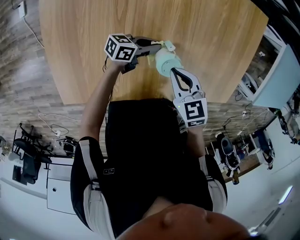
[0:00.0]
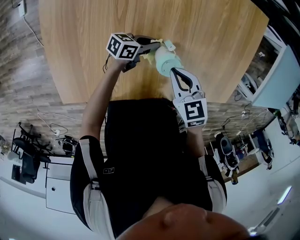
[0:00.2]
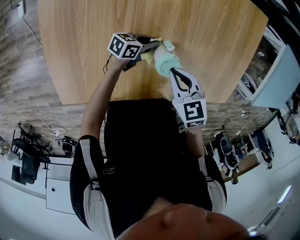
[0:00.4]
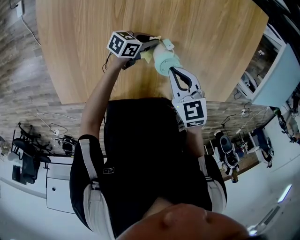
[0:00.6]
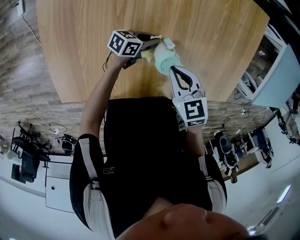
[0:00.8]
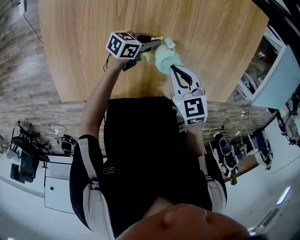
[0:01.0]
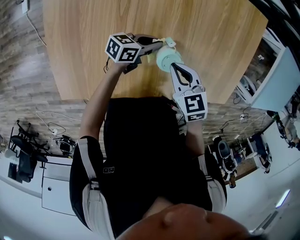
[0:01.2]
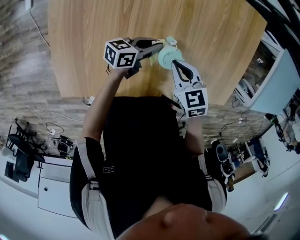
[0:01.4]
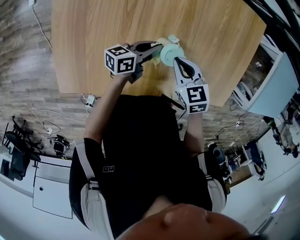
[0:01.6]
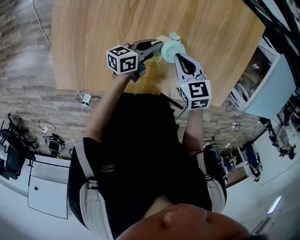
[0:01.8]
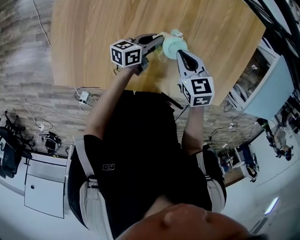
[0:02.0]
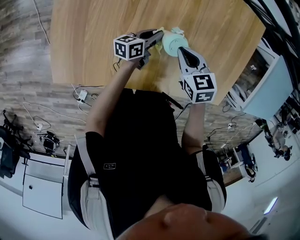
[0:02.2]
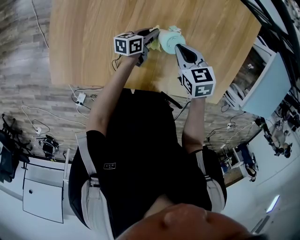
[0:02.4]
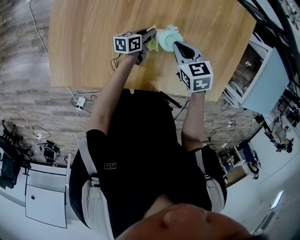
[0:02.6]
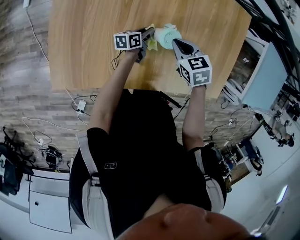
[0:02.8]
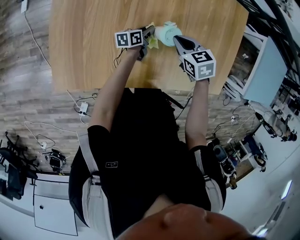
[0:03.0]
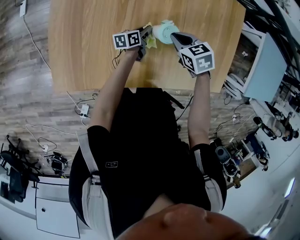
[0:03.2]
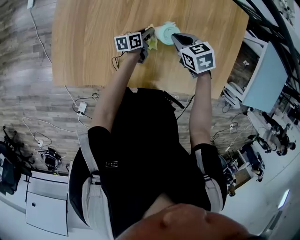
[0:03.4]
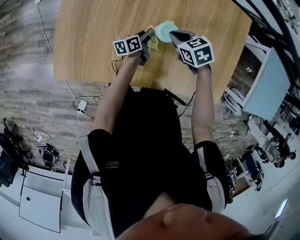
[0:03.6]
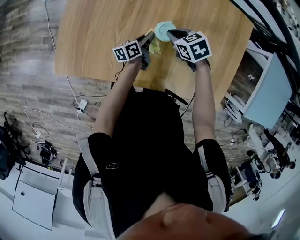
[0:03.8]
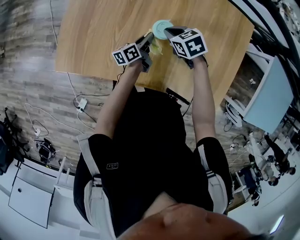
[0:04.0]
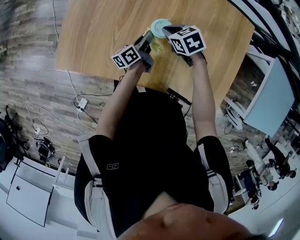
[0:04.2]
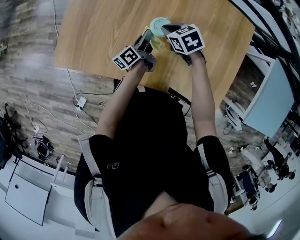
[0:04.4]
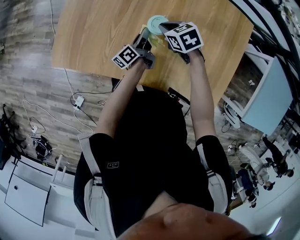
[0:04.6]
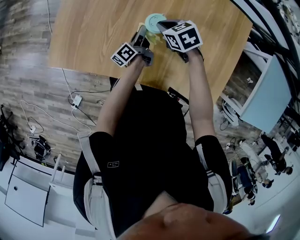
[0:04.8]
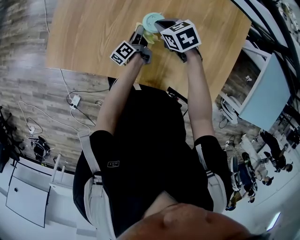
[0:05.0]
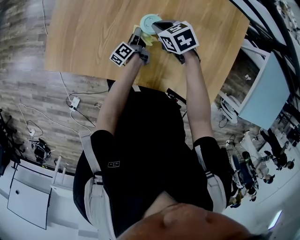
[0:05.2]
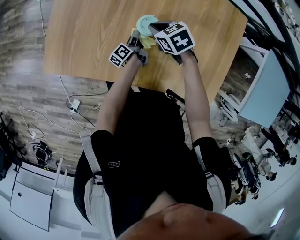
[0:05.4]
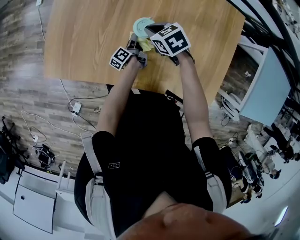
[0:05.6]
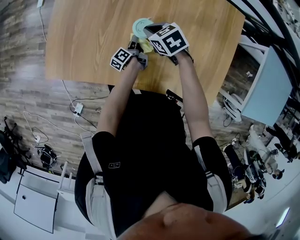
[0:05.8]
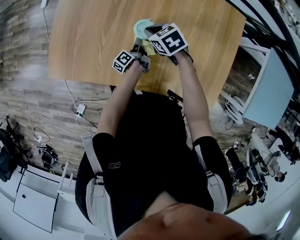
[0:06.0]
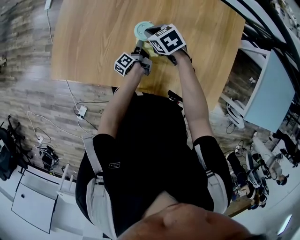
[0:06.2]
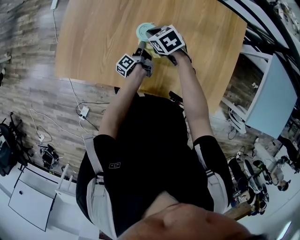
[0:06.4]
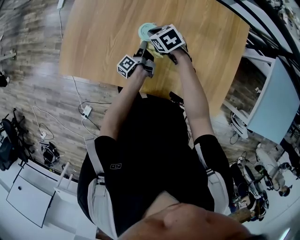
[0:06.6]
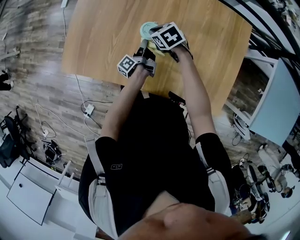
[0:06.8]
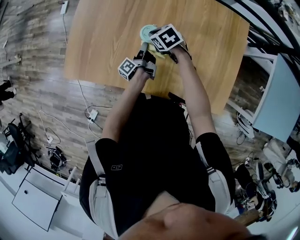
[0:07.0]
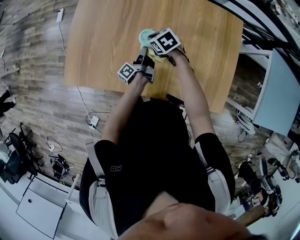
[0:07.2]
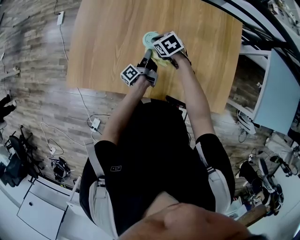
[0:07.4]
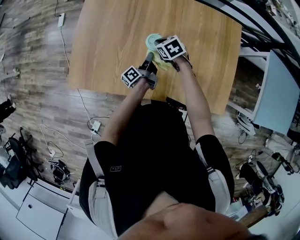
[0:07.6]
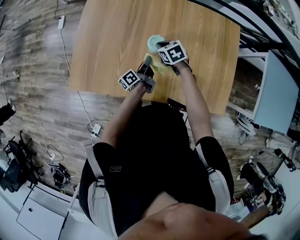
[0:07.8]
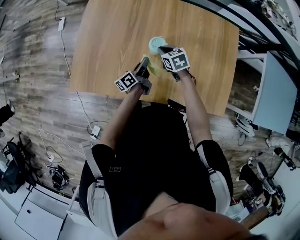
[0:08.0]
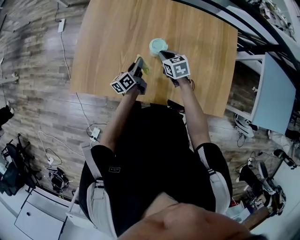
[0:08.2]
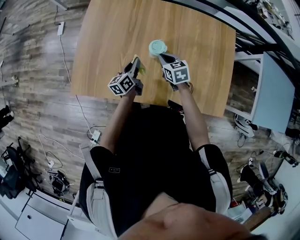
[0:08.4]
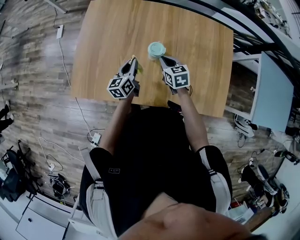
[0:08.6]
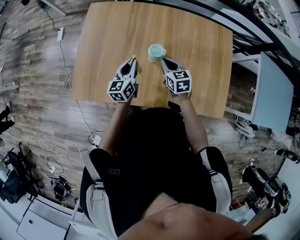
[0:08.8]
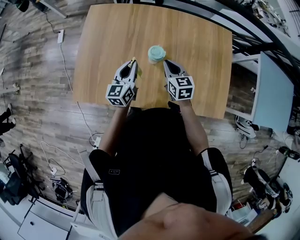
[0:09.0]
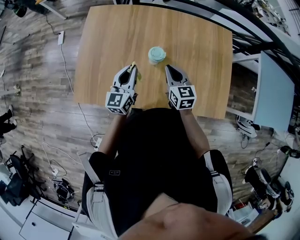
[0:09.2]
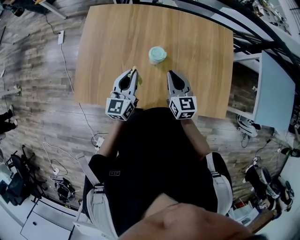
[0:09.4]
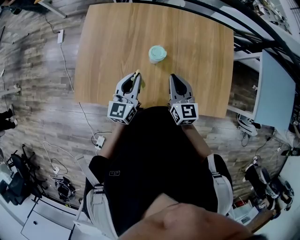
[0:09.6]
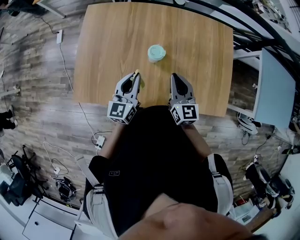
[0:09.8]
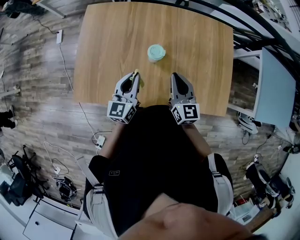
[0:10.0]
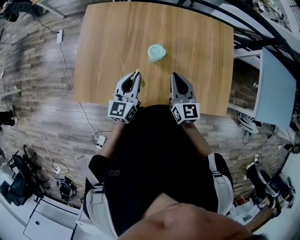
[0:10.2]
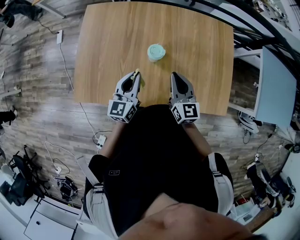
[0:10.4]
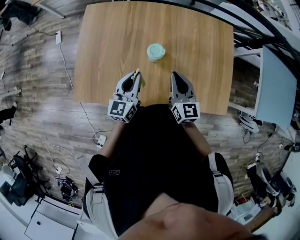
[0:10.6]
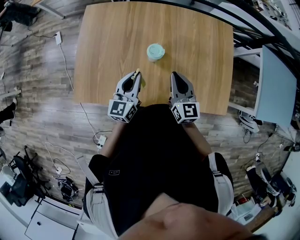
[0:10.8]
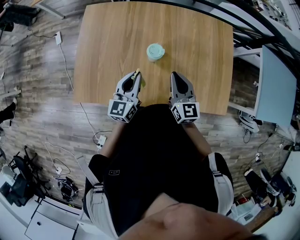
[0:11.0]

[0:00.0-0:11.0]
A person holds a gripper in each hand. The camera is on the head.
0.0 to 1.6 s: The left gripper heads upward, covering roughly 5 cm, and turns by roughly 20 degrees.
1.6 to 3.2 s: The left gripper heads downward, covering some 10 cm.
3.2 to 4.8 s: The left gripper goes roughly 10 cm upward, and swivels roughly 50 degrees.
4.8 to 6.2 s: The left gripper travels downward by roughly 5 cm.
6.2 to 7.8 s: The left gripper heads upward, covering some 10 cm, and rotates roughly 20 degrees.
7.8 to 9.4 s: The left gripper heads upward, covering approximately 20 cm, and twists about 70 degrees clockwise, seen from behind. Meanwhile the right gripper moves upward and backward, approximately 20 cm, and tips its fingers upward by approximately 40 degrees.
9.4 to 11.0 s: There are only small adjustments of the grippers.

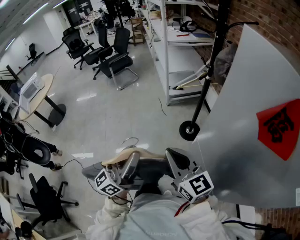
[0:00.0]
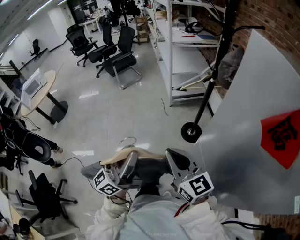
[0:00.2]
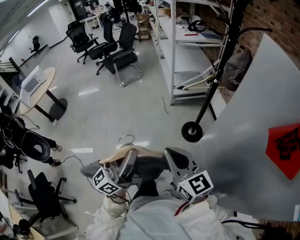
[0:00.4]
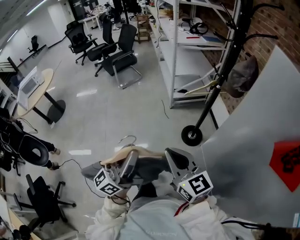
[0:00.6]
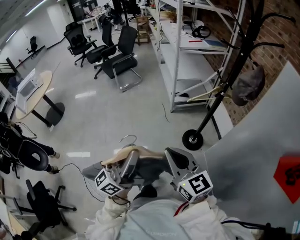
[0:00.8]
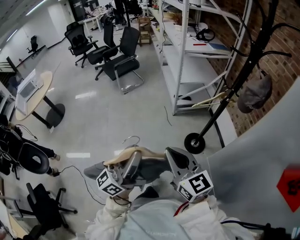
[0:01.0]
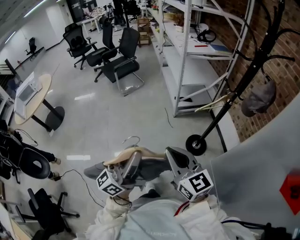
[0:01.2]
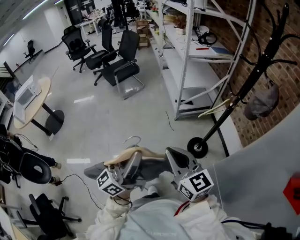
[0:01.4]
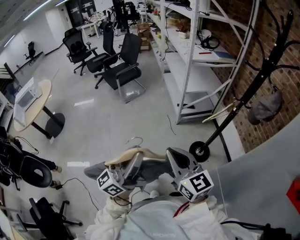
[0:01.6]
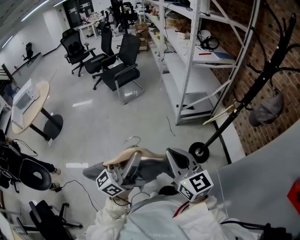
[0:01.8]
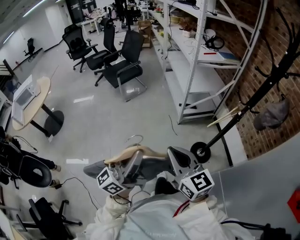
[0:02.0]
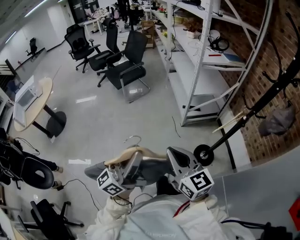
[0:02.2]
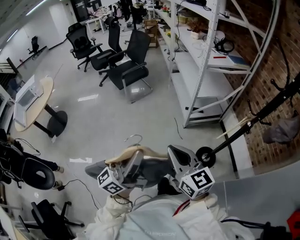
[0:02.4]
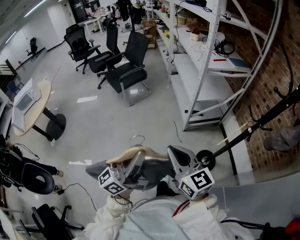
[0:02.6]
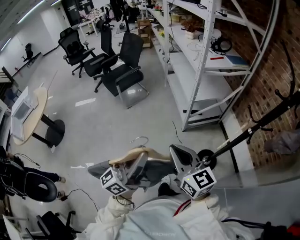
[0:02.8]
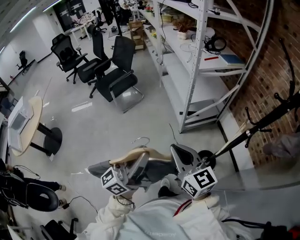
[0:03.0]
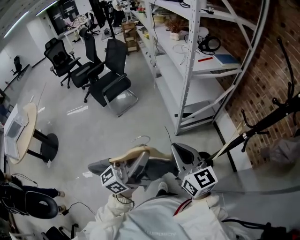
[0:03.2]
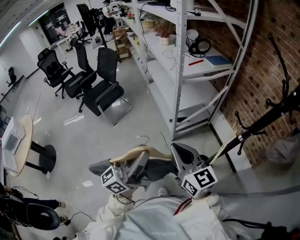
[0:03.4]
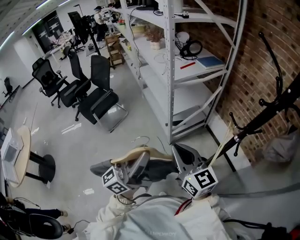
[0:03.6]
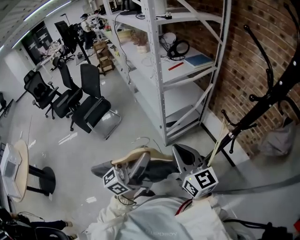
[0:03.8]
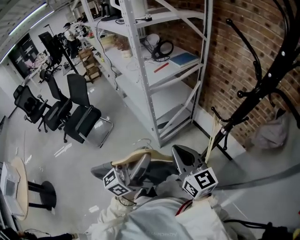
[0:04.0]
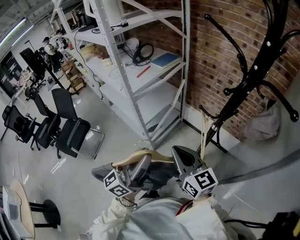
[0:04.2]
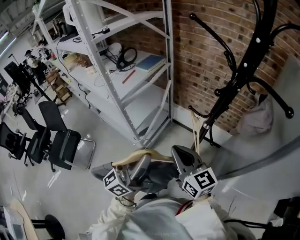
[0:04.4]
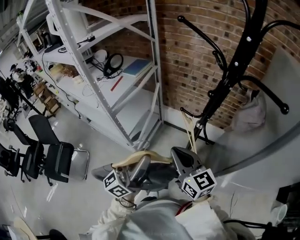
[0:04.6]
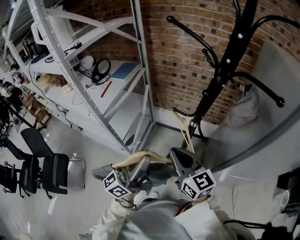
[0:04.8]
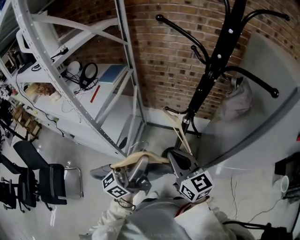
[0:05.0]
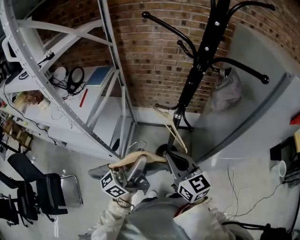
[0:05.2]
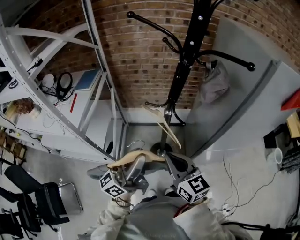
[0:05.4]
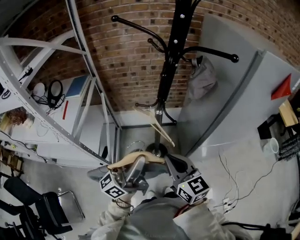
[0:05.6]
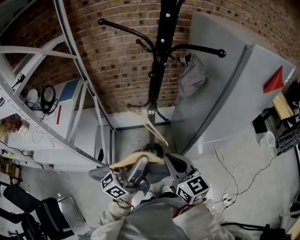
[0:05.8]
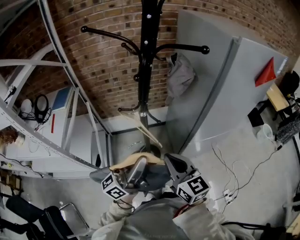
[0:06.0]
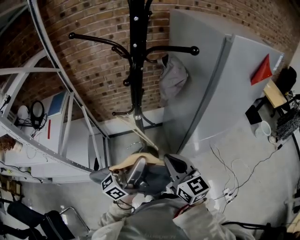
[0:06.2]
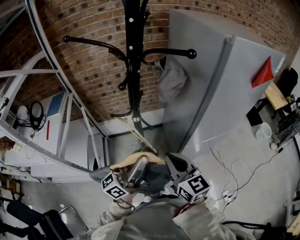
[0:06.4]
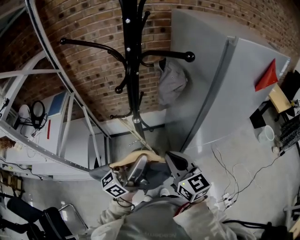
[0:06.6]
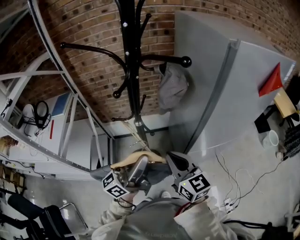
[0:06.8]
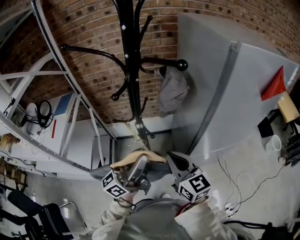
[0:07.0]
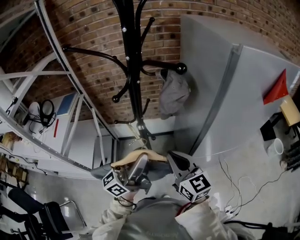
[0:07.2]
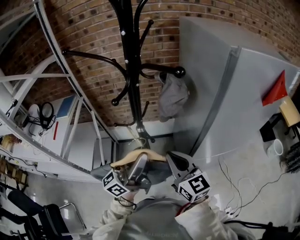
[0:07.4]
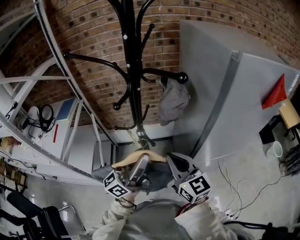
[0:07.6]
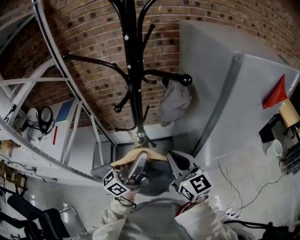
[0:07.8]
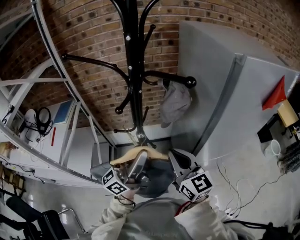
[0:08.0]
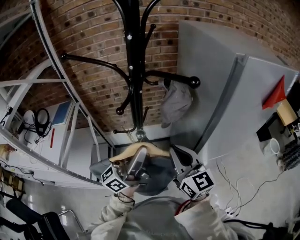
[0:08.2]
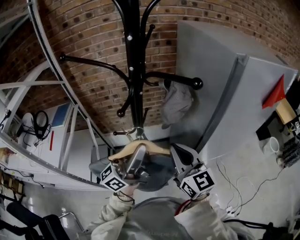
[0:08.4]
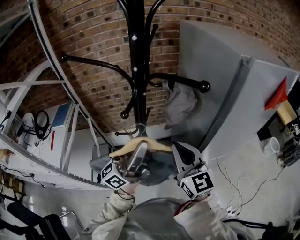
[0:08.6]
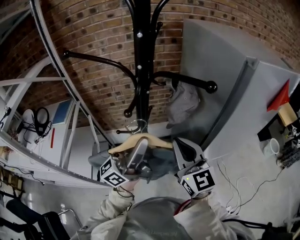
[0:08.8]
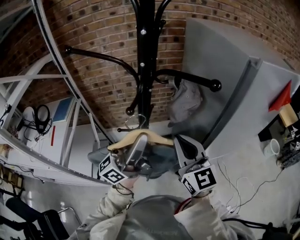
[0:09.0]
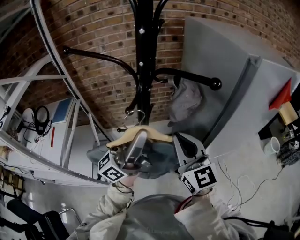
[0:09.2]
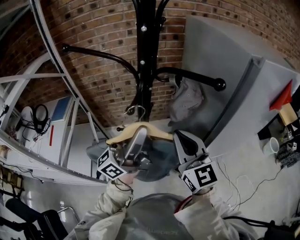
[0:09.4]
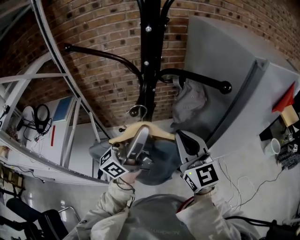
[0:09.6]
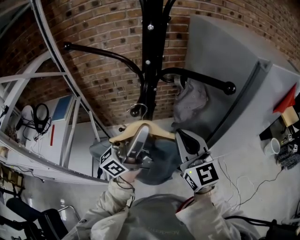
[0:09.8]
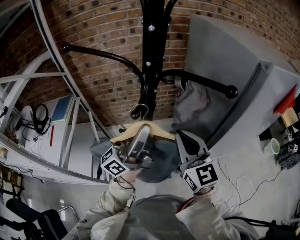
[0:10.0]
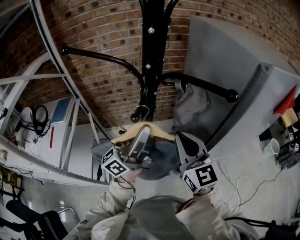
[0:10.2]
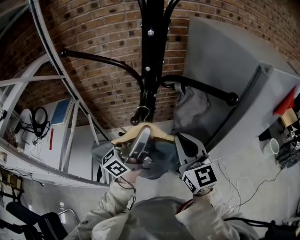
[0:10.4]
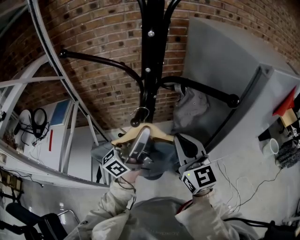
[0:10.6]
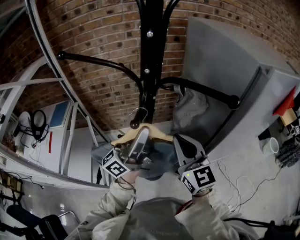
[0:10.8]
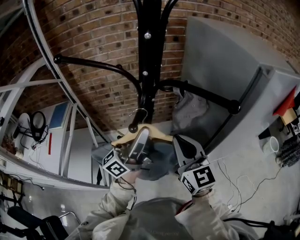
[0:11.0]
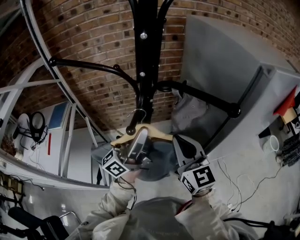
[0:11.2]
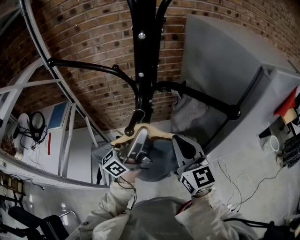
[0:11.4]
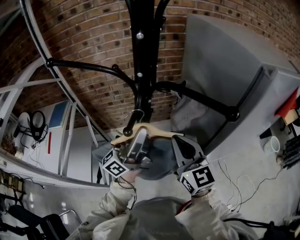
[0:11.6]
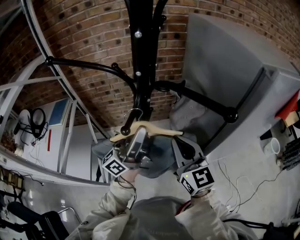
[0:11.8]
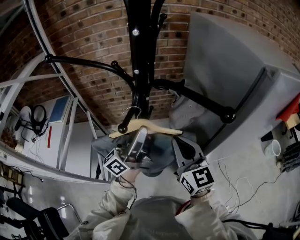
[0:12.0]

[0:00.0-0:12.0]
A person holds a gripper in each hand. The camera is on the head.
0.0 to 1.6 s: The grippers both shift forward and to the left by roughly 30 cm.
1.6 to 3.0 s: Both grippers travel together forward, about 25 cm.
3.0 to 4.4 s: The left gripper moves some 30 cm, and changes its angle by about 40 degrees. The right gripper ends up approximately 25 cm from where it was, and swivels some 40 degrees.
4.4 to 6.0 s: The left gripper changes place by roughly 10 cm, and turns by some 50 degrees, while the right gripper ends up approximately 10 cm from where it was, and changes its angle by about 50 degrees.
6.0 to 7.6 s: Both grippers travel together forward and to the right, about 10 cm.
7.6 to 9.0 s: The left gripper heads upward, forward and to the left, covering about 10 cm; the right gripper goes about 10 cm upward and forward.
9.0 to 10.4 s: The left gripper shifts about 5 cm forward.
10.4 to 12.0 s: The left gripper ends up about 5 cm from where it was.

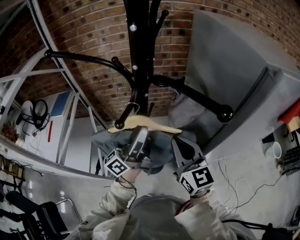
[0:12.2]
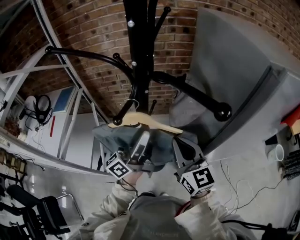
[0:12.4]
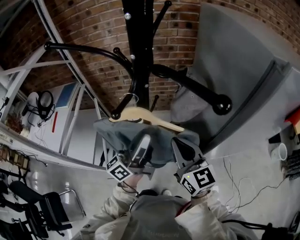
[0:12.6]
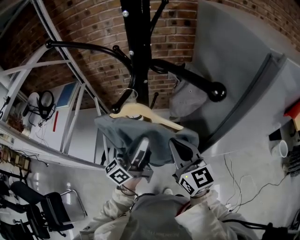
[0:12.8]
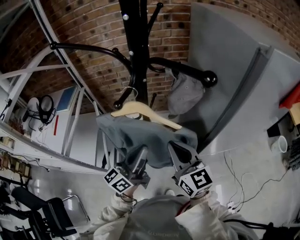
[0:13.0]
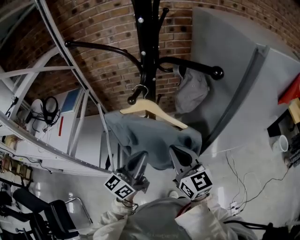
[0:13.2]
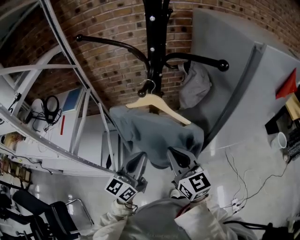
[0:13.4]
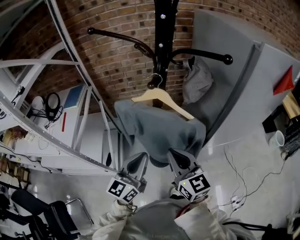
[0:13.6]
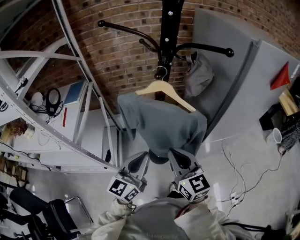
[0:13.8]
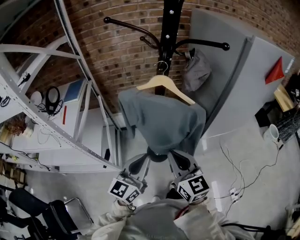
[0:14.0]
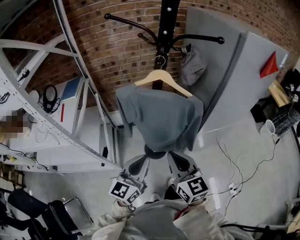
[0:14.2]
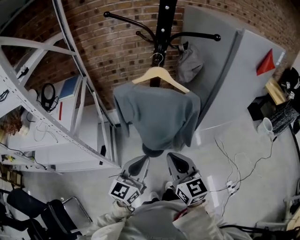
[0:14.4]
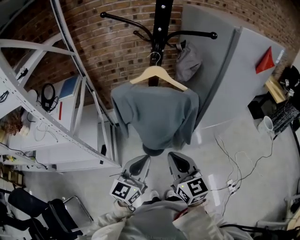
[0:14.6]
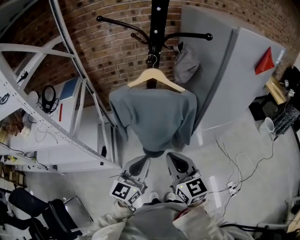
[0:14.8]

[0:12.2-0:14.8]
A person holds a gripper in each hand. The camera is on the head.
12.2 to 13.4 s: The left gripper shifts about 20 cm backward and downward, swivels about 40 degrees, and closes up. Meanwhile the right gripper is displaced backward and to the left by some 15 cm.
13.4 to 14.8 s: Both grippers travel together backward, about 15 cm.
